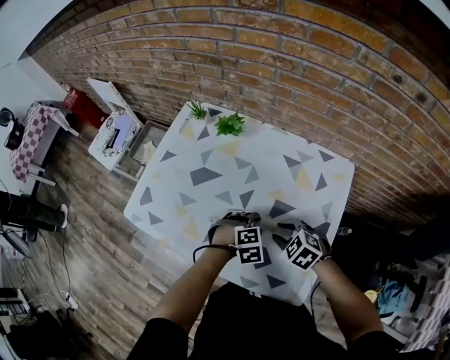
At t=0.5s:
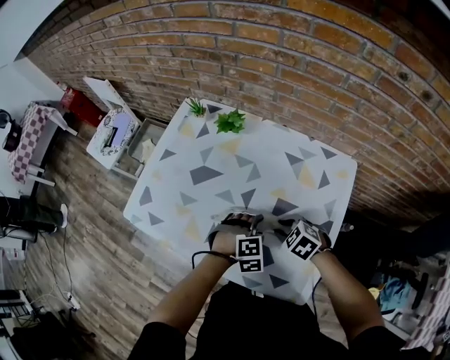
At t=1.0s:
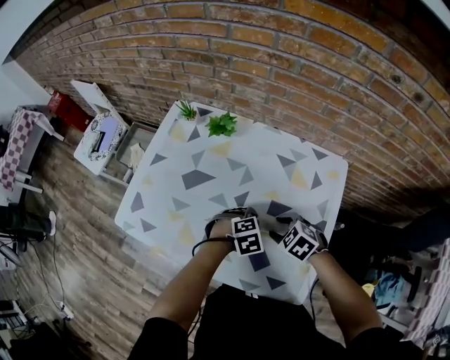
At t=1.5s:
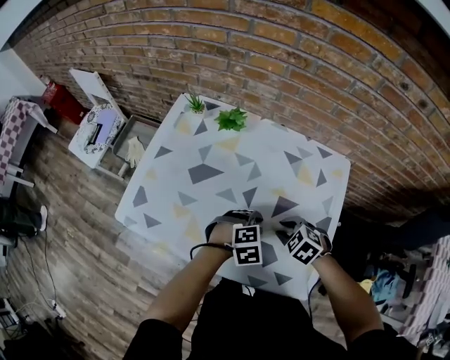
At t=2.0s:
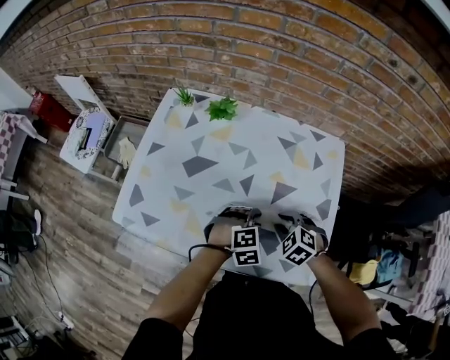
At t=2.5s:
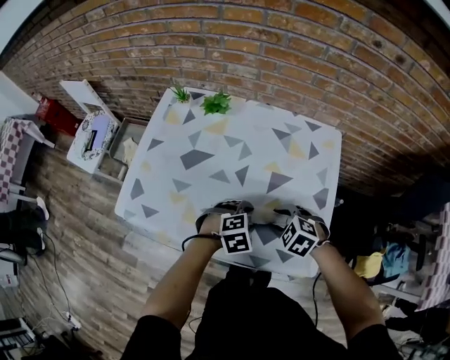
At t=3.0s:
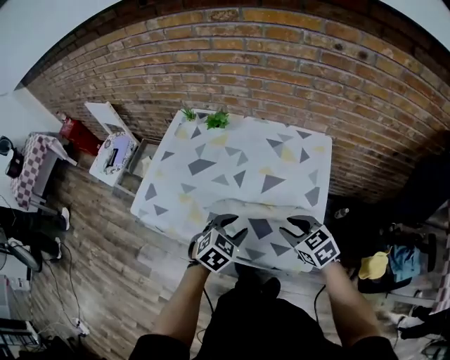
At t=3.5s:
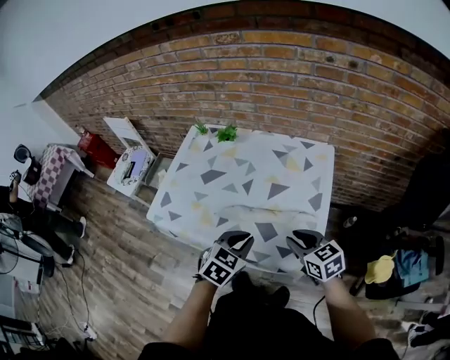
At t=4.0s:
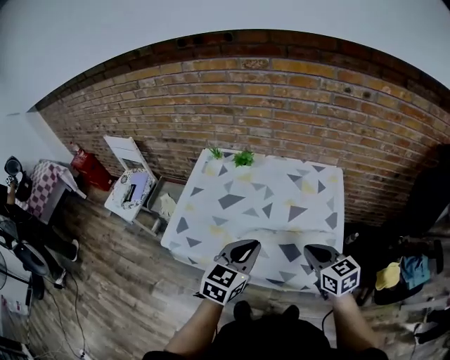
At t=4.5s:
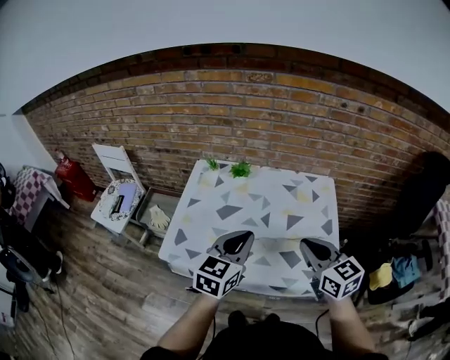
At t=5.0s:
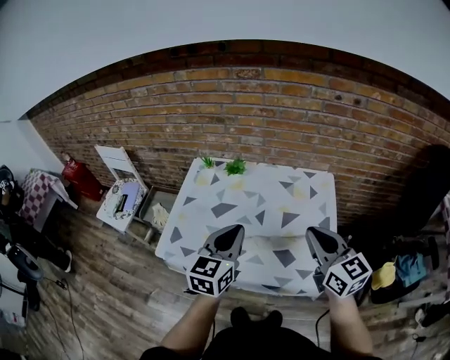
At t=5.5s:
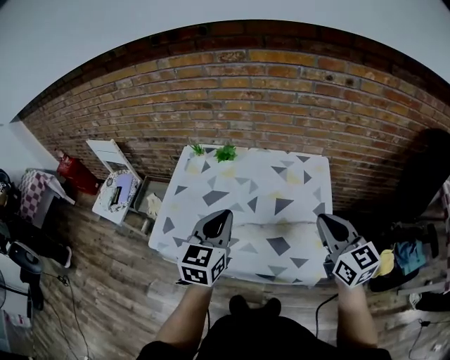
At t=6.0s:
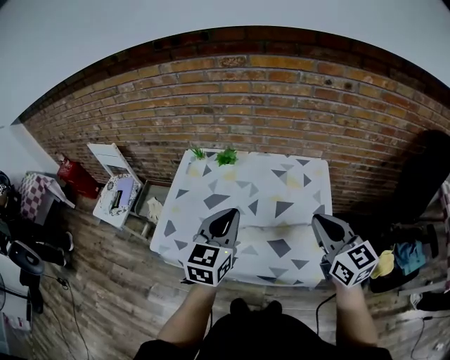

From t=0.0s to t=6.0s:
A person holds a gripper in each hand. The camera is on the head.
From t=2.0s to t=4.0s: The right gripper shifts some 20 cm upward and backward, points its fingers approximately 40 degrees further upward, and closes its fingers. Meanwhile the left gripper heads upward and to the left, covering roughly 25 cm, points its fingers roughly 40 degrees further upward, and closes.
From t=4.0s to t=6.0s: The right gripper moves upward, some 15 cm, and turns by approximately 20 degrees. The left gripper is displaced upward and forward by about 10 cm.

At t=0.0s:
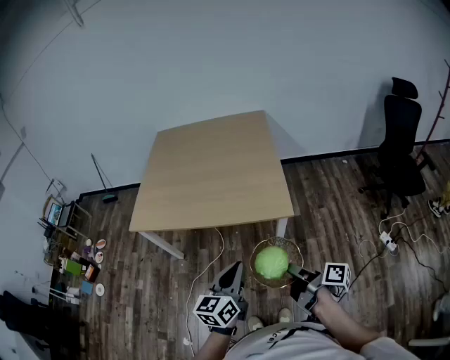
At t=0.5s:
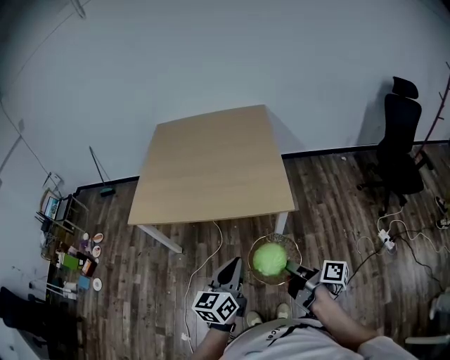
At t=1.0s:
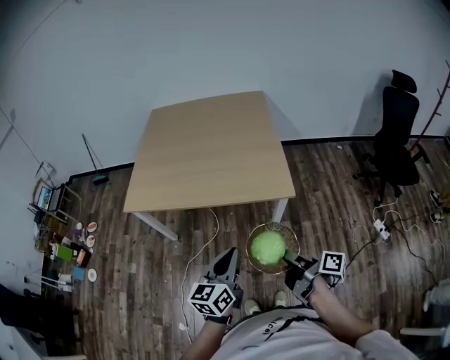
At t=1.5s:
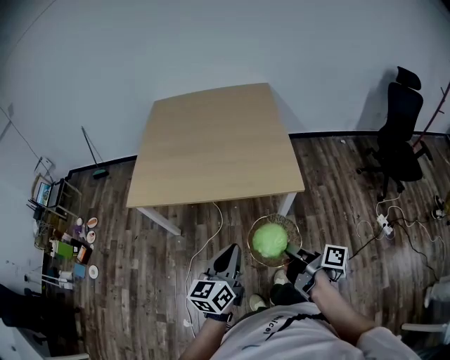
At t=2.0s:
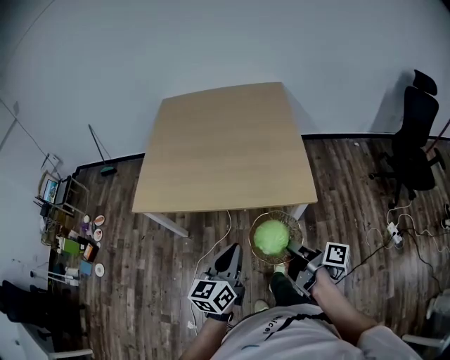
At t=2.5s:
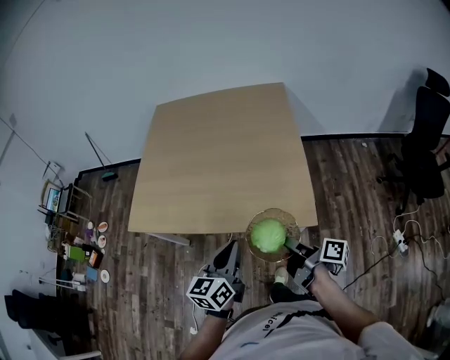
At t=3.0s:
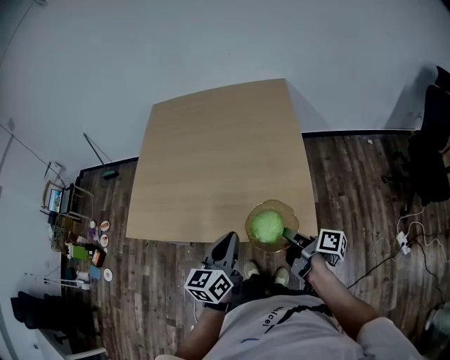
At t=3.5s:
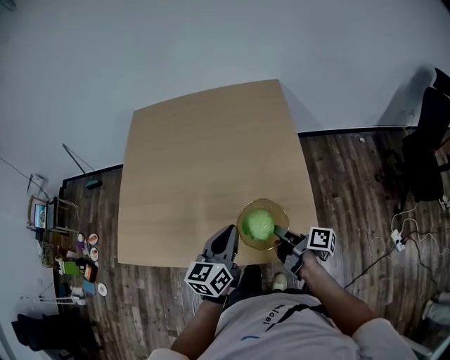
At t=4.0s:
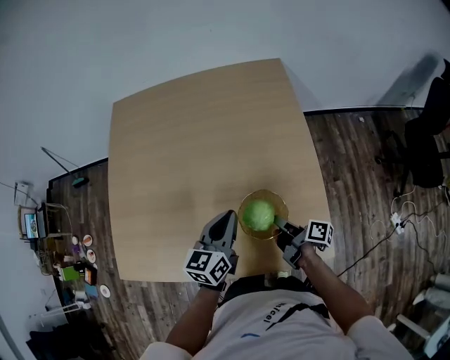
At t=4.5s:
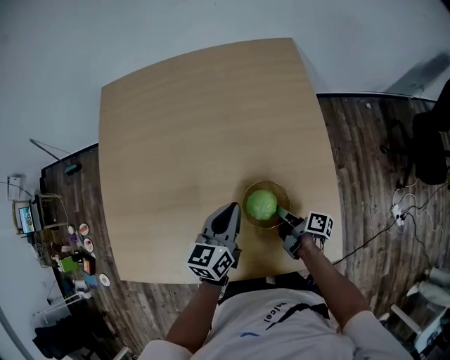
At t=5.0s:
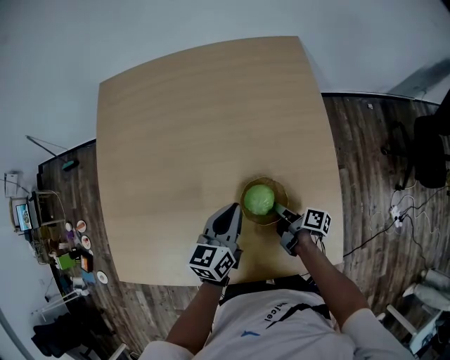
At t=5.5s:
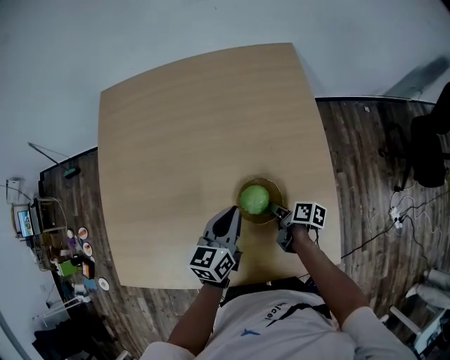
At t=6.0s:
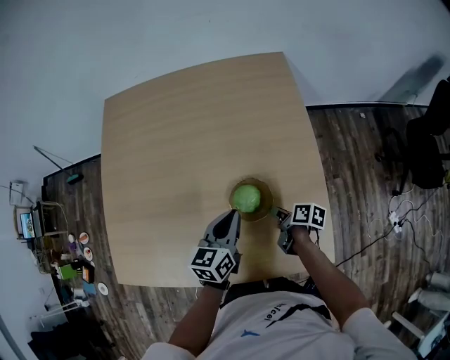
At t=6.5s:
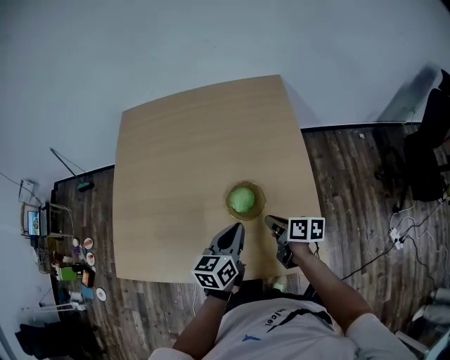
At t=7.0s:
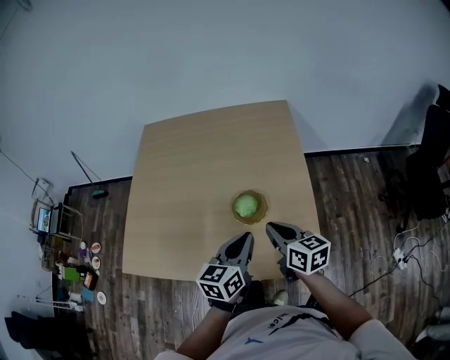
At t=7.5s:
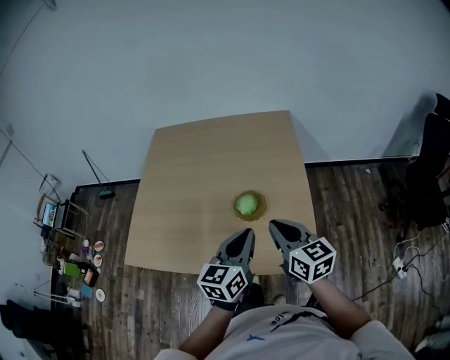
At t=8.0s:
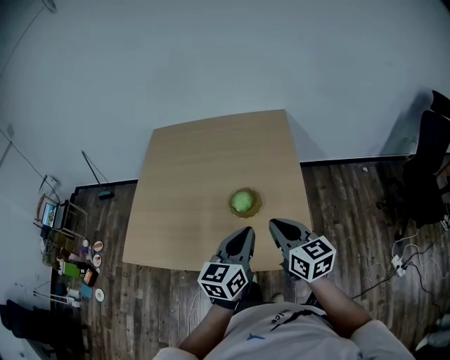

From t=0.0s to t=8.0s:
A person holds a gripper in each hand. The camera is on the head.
From t=0.0s to t=2.0s: The left gripper changes place by approximately 15 cm.
From t=2.0s to t=4.0s: The left gripper ends up some 50 cm from where it was.
From t=6.0s to t=8.0s: The left gripper shifts by roughly 30 cm.

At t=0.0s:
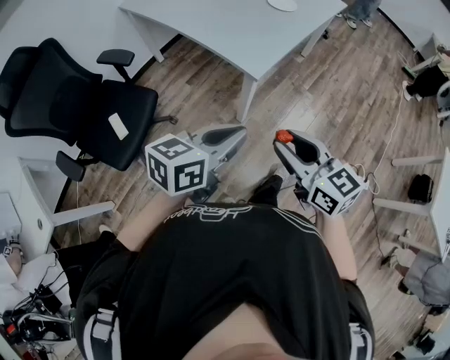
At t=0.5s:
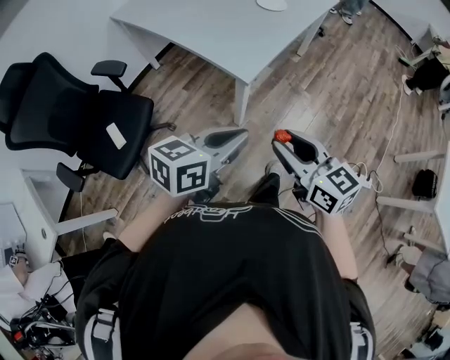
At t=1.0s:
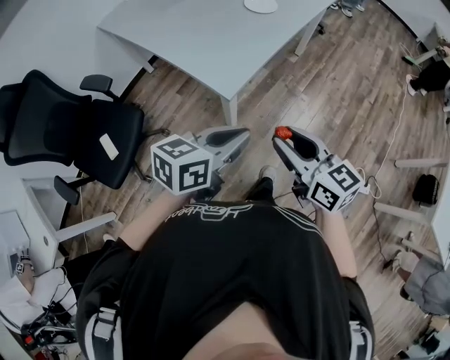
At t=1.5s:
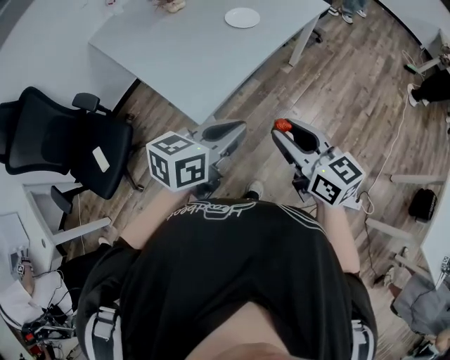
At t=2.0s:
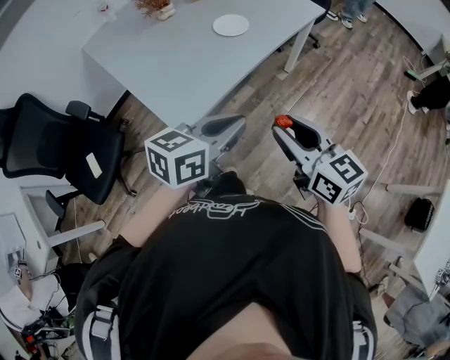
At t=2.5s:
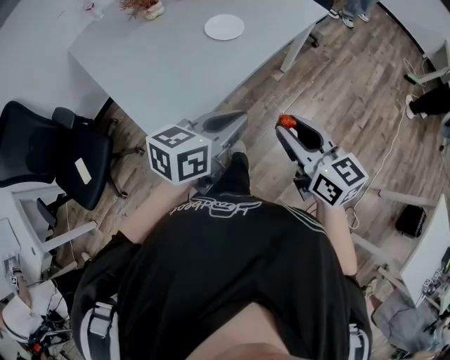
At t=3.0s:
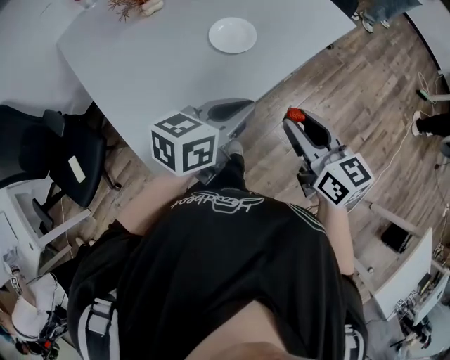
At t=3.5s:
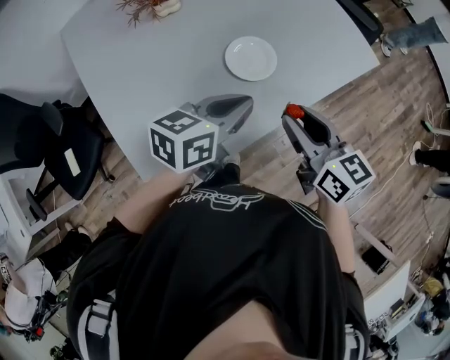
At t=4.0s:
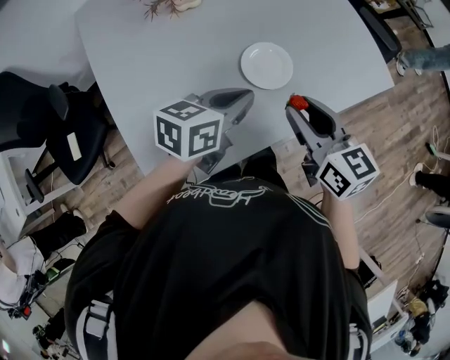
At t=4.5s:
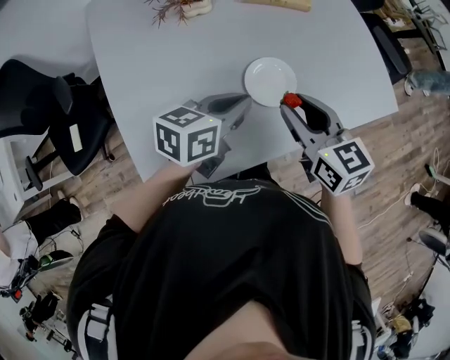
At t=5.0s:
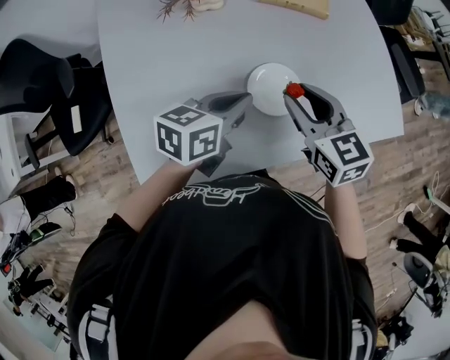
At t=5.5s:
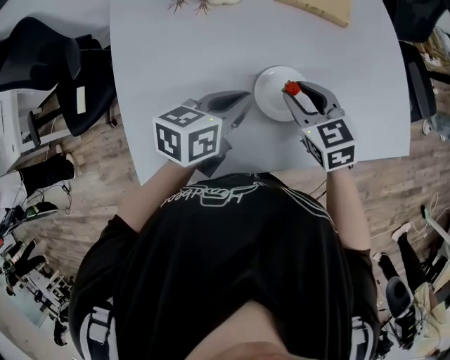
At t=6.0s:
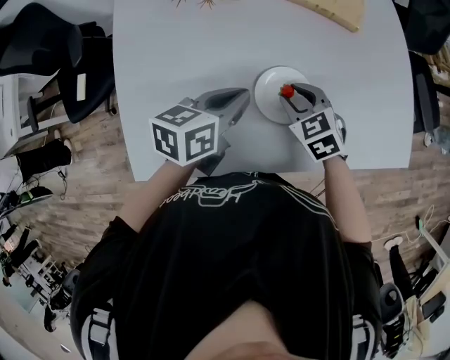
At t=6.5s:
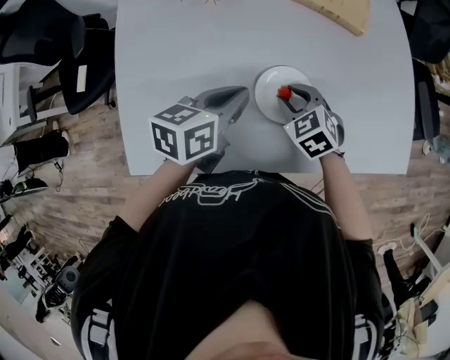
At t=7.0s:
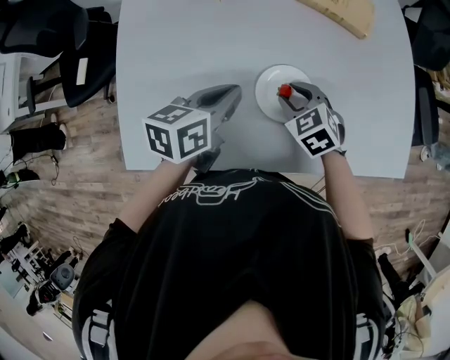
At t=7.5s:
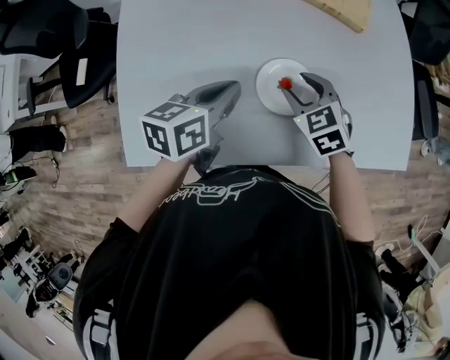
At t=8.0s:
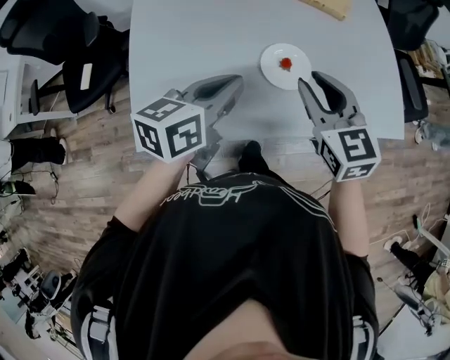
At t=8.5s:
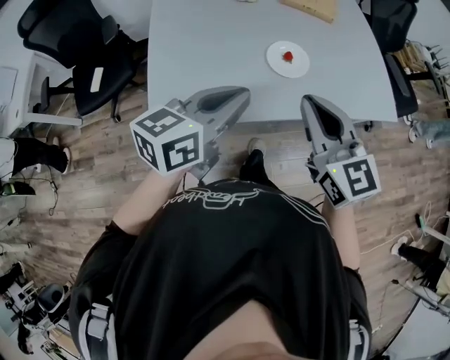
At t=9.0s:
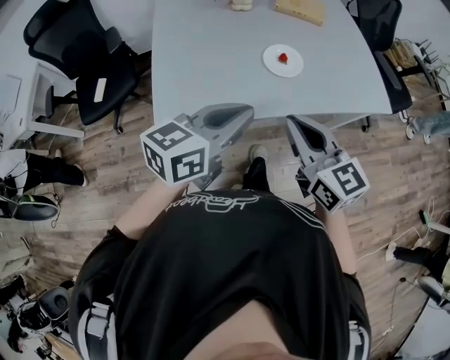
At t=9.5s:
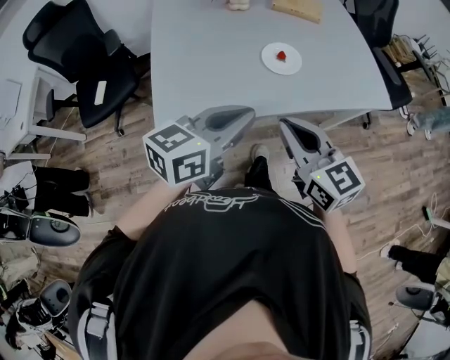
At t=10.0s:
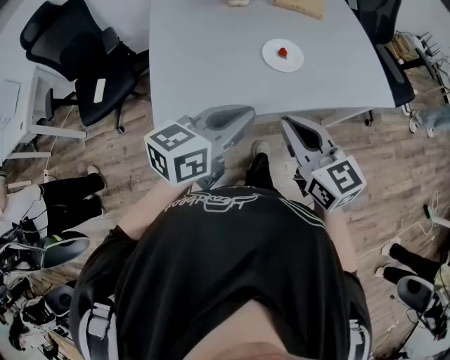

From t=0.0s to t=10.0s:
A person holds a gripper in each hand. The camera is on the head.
From t=0.0s to t=2.0s: Both grippers move forward and to the right, some 40 cm.
From t=2.0s to t=4.0s: Both grippers are carried forward, about 40 cm. The left gripper rotates about 20 degrees.
From t=4.0s to t=6.0s: The right gripper heads downward and forward, covering approximately 20 cm, and swivels about 50 degrees; the left gripper moves forward, about 10 cm, and rotates approximately 30 degrees.
From t=6.0s to t=8.0s: The right gripper shifts roughly 20 cm upward and backward, and rotates approximately 30 degrees, while the left gripper moves backward and upward, some 15 cm.
From t=8.0s to t=10.0s: Both grippers travel together backward, about 20 cm. The right gripper closes up.

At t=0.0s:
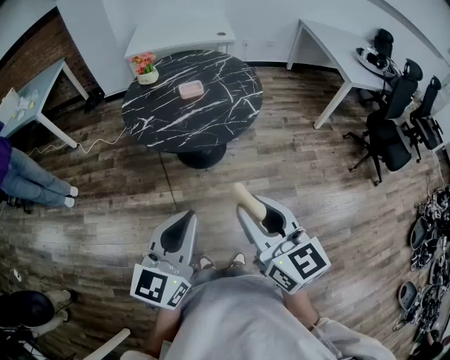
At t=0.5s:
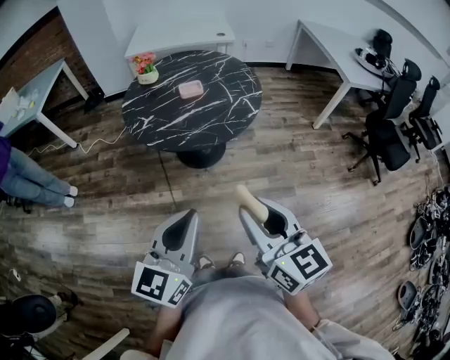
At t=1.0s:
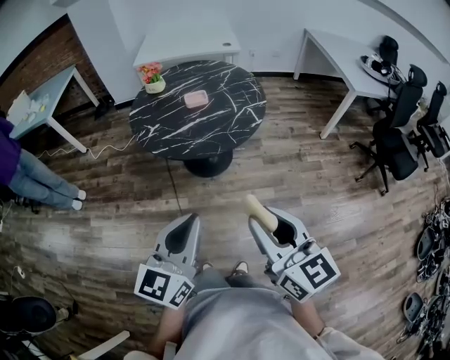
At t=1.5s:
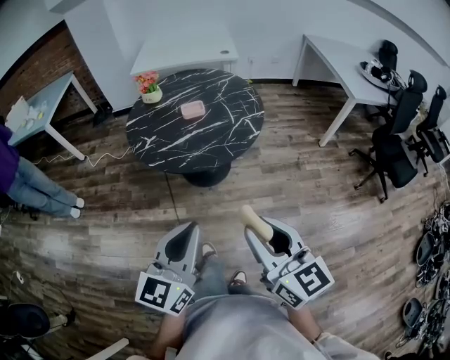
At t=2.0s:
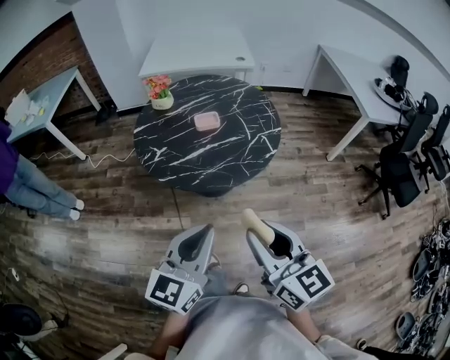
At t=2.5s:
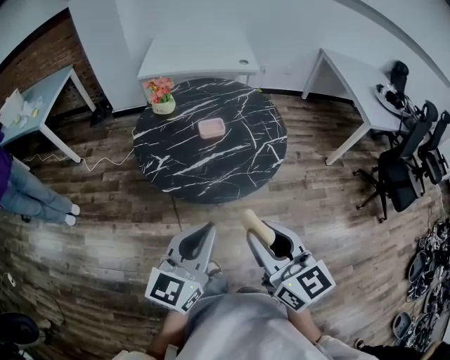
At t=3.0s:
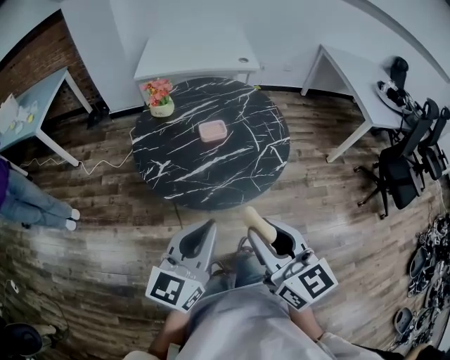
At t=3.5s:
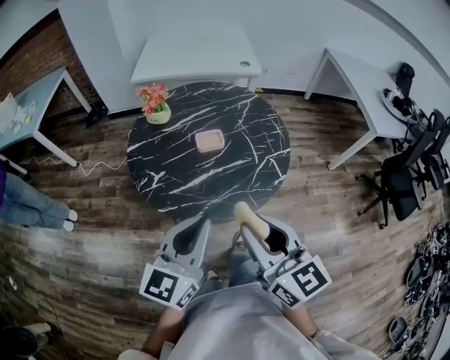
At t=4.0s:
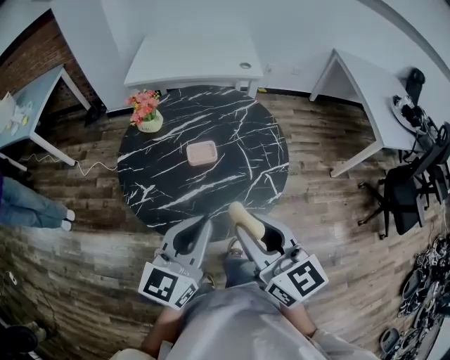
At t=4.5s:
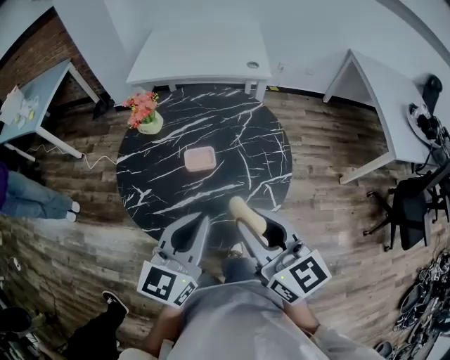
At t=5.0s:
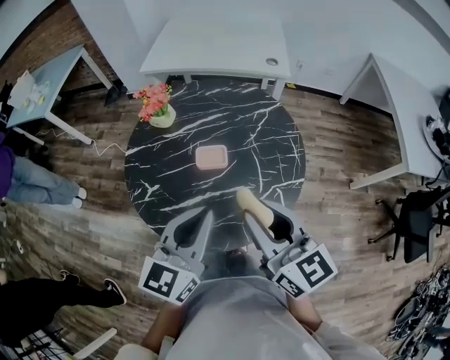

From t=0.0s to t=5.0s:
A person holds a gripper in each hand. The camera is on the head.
From t=0.0s to t=2.5s: The two grippers go some 15 cm forward.
From t=2.5s to t=5.0s: Both grippers travel together forward, approximately 30 cm.
